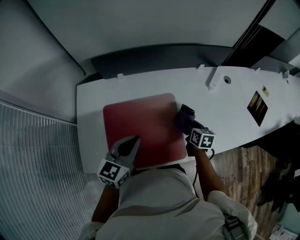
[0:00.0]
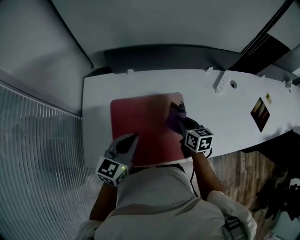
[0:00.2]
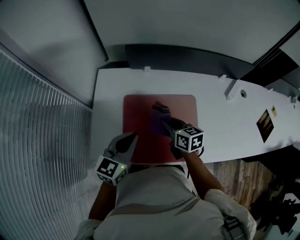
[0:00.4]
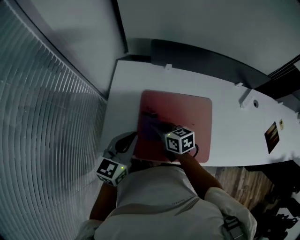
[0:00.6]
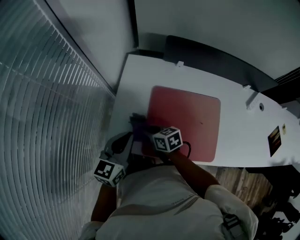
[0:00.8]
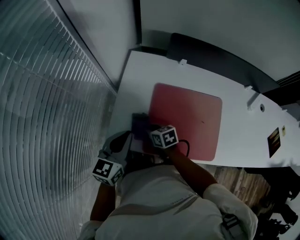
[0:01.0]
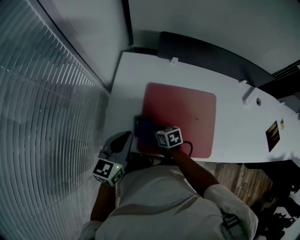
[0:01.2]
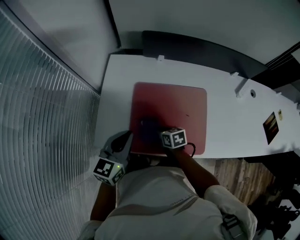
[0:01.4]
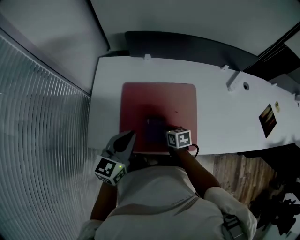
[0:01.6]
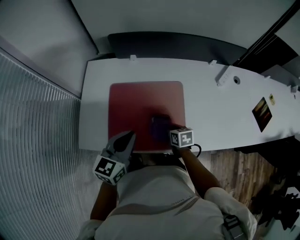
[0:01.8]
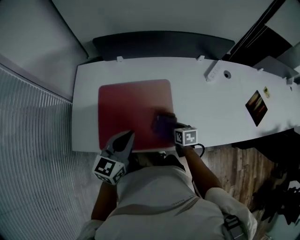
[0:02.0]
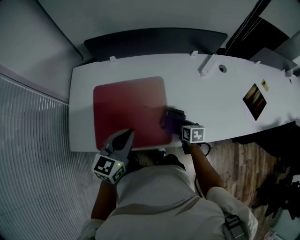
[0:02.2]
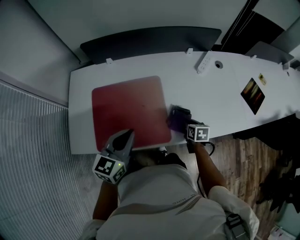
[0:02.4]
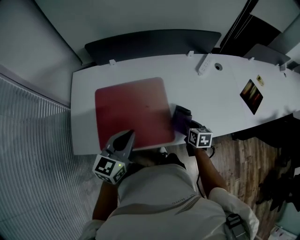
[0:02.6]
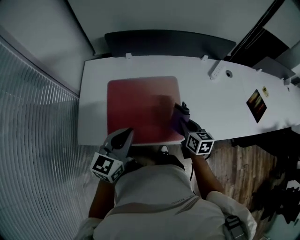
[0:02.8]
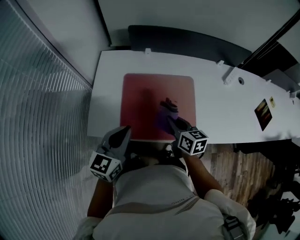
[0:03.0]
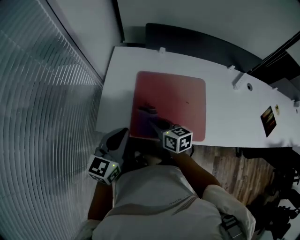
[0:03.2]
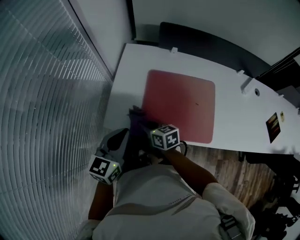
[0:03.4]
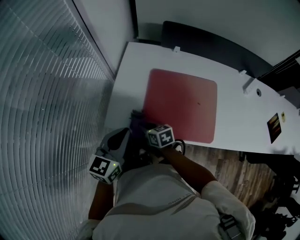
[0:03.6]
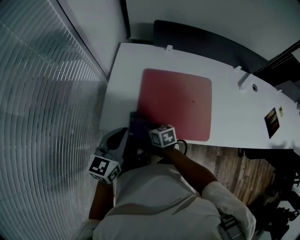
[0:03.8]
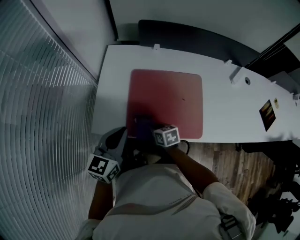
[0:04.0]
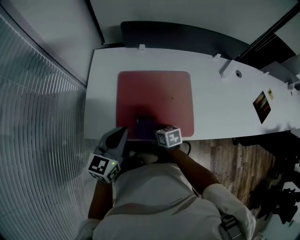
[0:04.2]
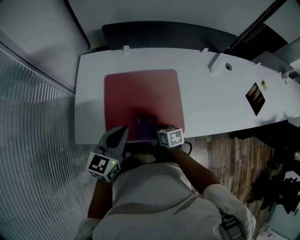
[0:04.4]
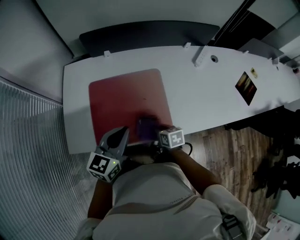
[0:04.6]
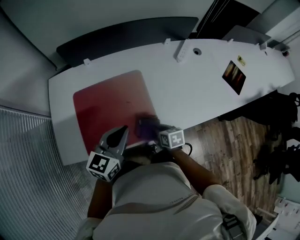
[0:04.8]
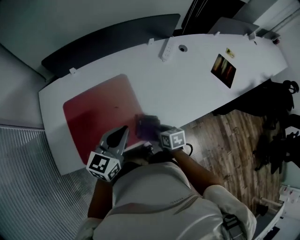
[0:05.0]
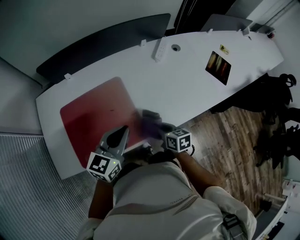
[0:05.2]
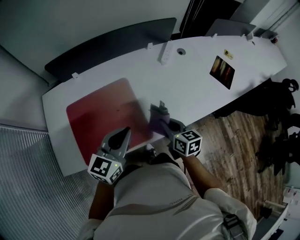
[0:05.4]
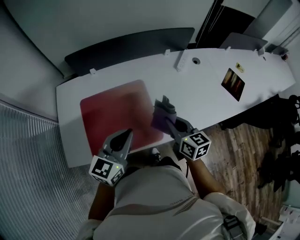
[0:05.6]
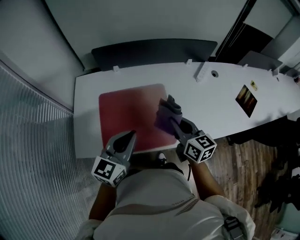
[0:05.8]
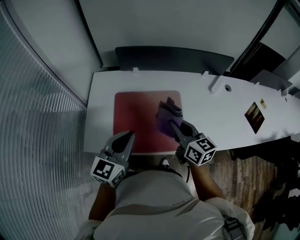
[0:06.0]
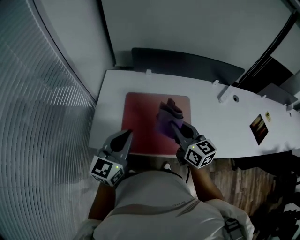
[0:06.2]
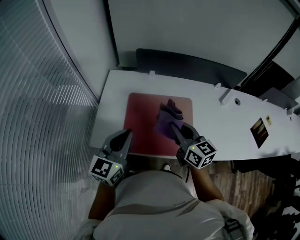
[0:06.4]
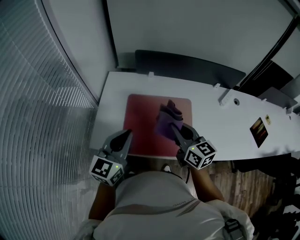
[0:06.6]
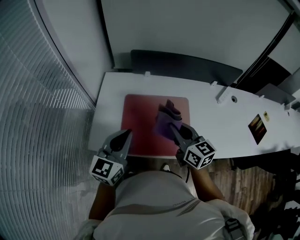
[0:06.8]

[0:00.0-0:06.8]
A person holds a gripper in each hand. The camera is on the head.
0:00.0 to 0:01.4: The right gripper moves about 35 cm, and turns by roughly 40 degrees.
0:01.4 to 0:02.8: The right gripper shifts by some 30 cm, and turns by some 30 degrees.
0:02.8 to 0:04.0: The right gripper changes place by roughly 30 cm, and swivels some 30 degrees. The left gripper changes place by approximately 15 cm.
0:04.0 to 0:05.4: The right gripper changes place by about 40 cm, and rotates roughly 40 degrees. Meanwhile the left gripper ends up roughly 35 cm from where it was, and changes its angle by roughly 30 degrees.
0:05.4 to 0:06.8: The right gripper shifts by about 30 cm, and turns by some 30 degrees. Meanwhile the left gripper ends up about 25 cm from where it was, and swivels some 30 degrees.

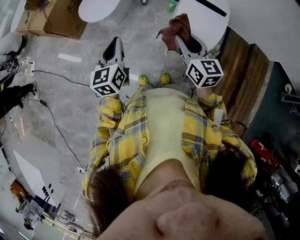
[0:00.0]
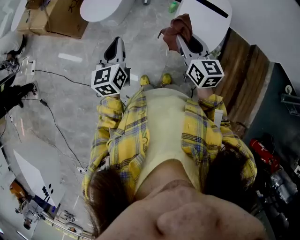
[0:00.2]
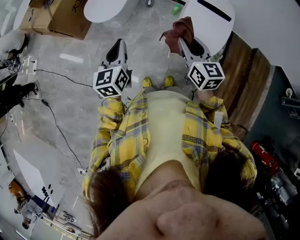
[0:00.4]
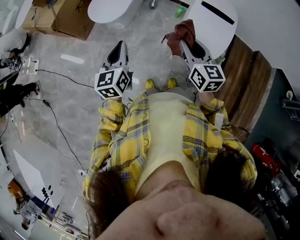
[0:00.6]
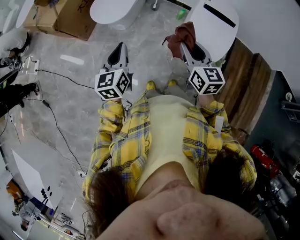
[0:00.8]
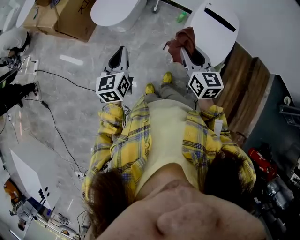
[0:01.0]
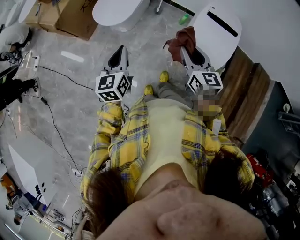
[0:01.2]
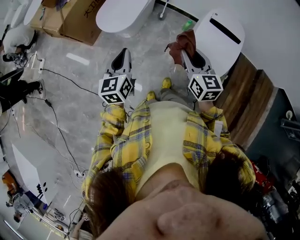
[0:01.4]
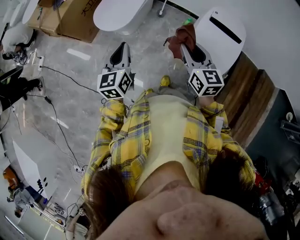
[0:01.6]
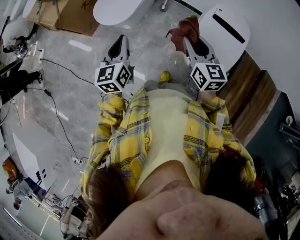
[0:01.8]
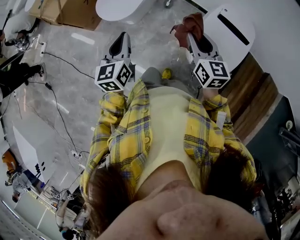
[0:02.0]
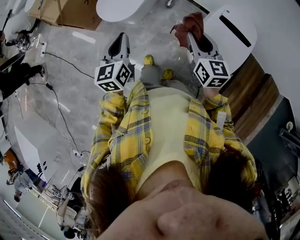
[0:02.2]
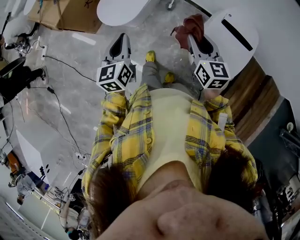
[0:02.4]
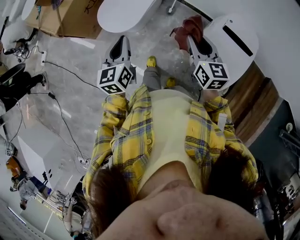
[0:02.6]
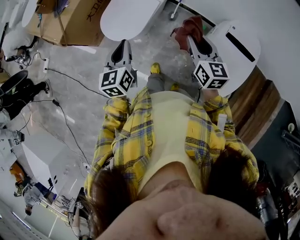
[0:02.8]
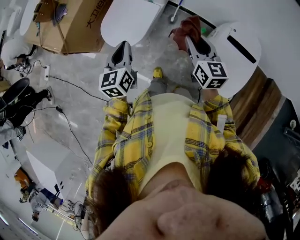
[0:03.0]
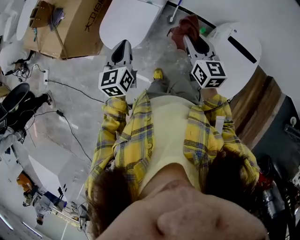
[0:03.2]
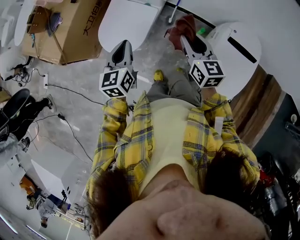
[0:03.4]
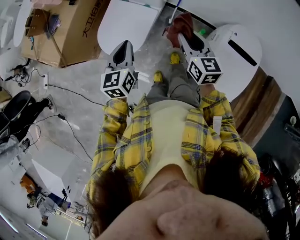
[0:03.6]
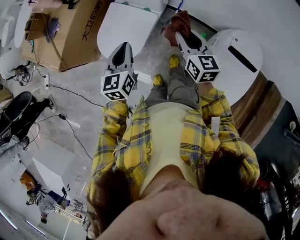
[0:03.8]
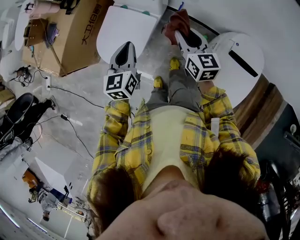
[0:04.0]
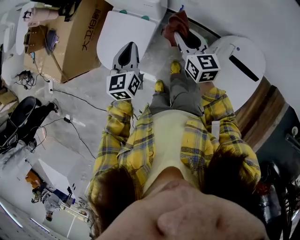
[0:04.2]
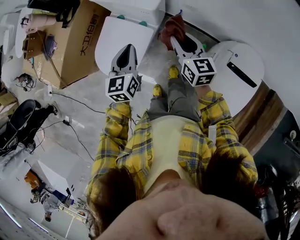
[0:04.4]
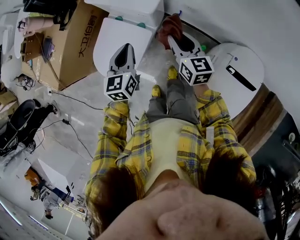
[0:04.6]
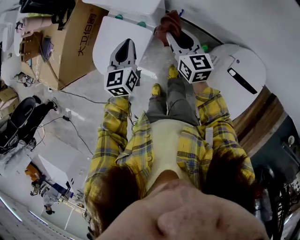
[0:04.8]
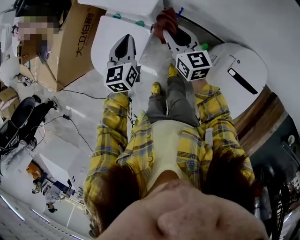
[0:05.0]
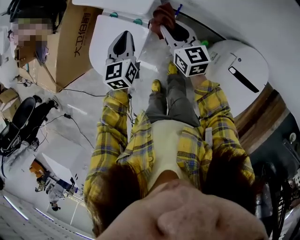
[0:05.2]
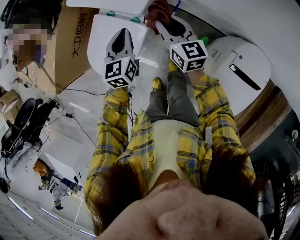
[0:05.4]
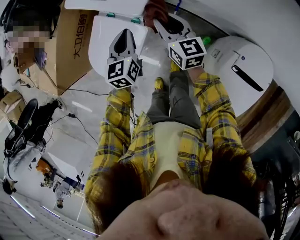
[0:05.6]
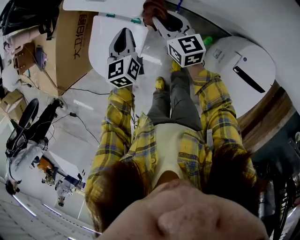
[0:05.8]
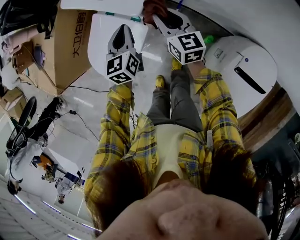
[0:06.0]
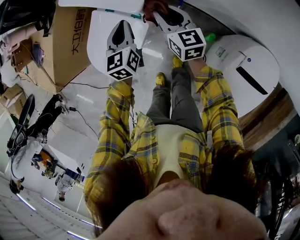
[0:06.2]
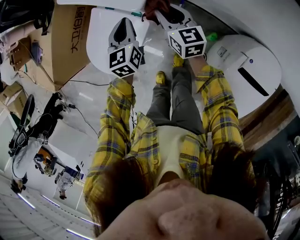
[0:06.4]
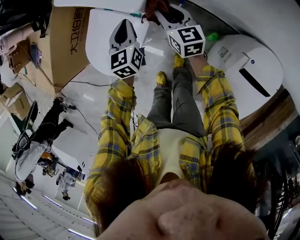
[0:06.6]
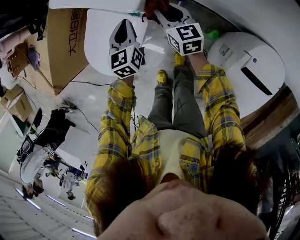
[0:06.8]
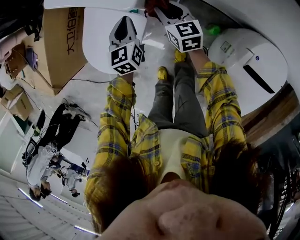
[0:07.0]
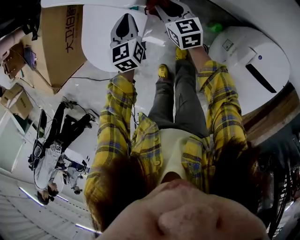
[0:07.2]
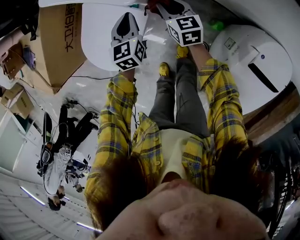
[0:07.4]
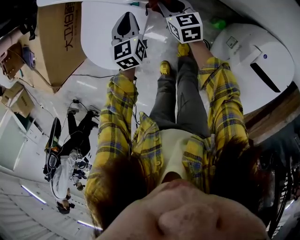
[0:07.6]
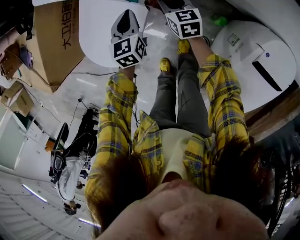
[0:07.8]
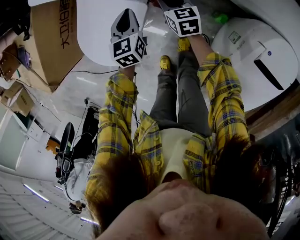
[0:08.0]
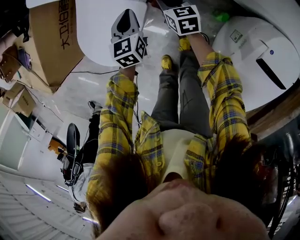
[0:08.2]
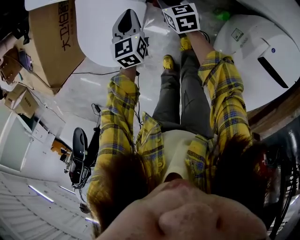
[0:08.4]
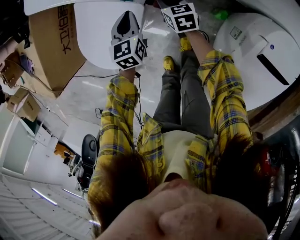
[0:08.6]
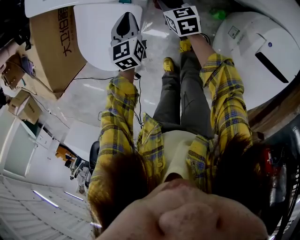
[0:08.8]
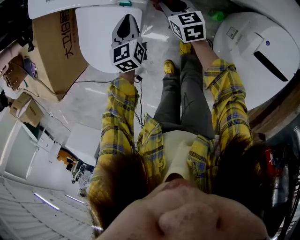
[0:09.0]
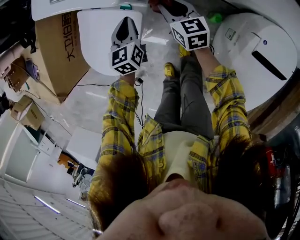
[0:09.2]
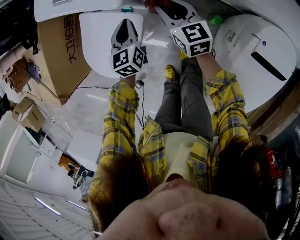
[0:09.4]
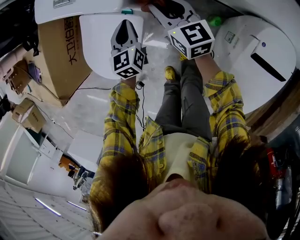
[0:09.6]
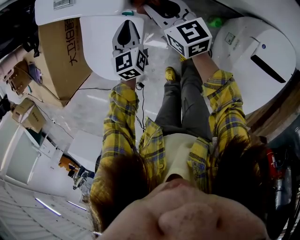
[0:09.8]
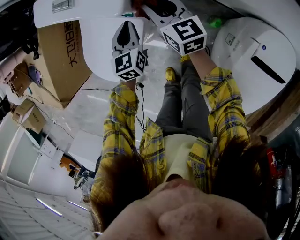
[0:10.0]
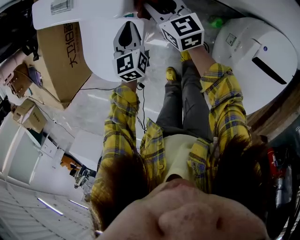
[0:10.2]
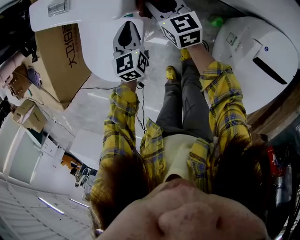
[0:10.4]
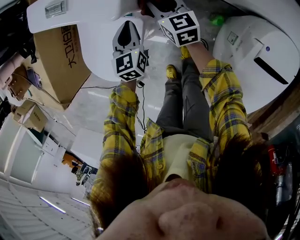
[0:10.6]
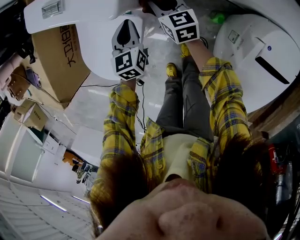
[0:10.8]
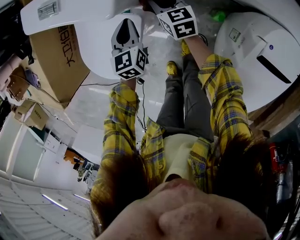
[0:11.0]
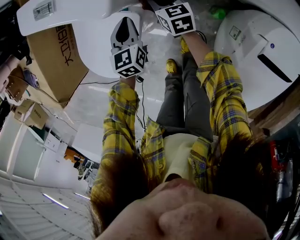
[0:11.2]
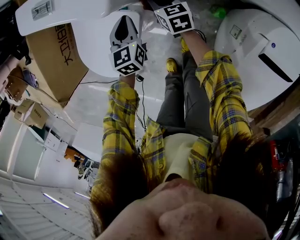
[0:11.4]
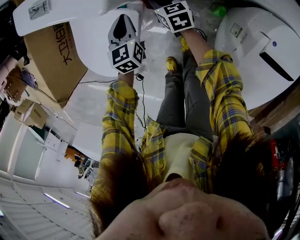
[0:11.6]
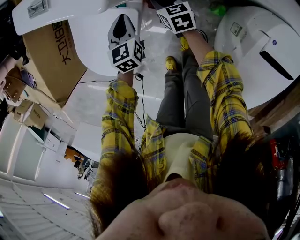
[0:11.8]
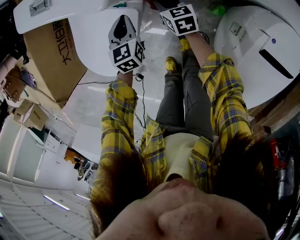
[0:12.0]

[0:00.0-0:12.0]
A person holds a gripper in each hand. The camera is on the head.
0:00.0 to 0:01.6: Both grippers move forward, some 10 cm.
0:01.6 to 0:03.0: Both grippers move forward, about 20 cm.
0:03.0 to 0:04.4: The right gripper moves forward, some 20 cm. The left gripper shifts roughly 25 cm forward and to the right.
0:04.4 to 0:06.0: The grippers both shift forward and downward by about 15 cm.
0:06.0 to 0:07.6: Both grippers travel together downward, approximately 15 cm.
0:07.6 to 0:09.0: There are only small adjustments of the grippers.
0:09.0 to 0:10.4: The right gripper moves upward and forward, roughly 10 cm.
0:10.4 to 0:12.0: The right gripper shifts approximately 15 cm downward, while the left gripper is displaced downward by about 5 cm.

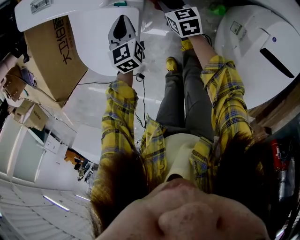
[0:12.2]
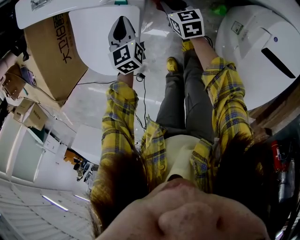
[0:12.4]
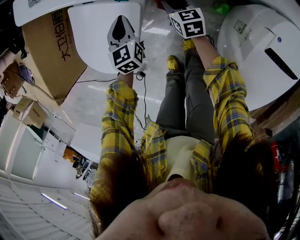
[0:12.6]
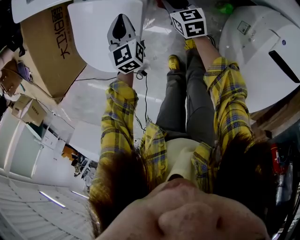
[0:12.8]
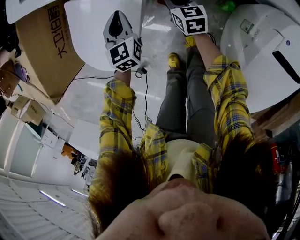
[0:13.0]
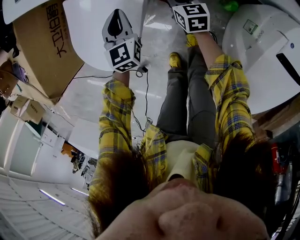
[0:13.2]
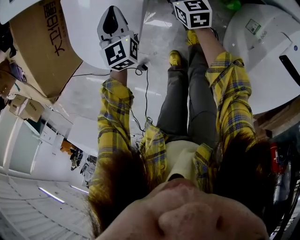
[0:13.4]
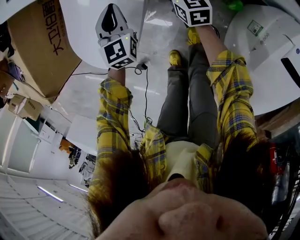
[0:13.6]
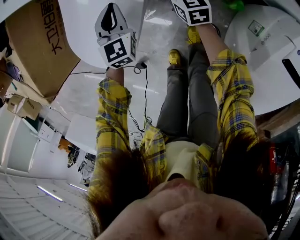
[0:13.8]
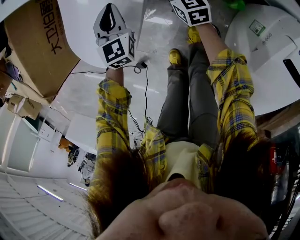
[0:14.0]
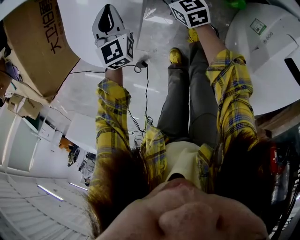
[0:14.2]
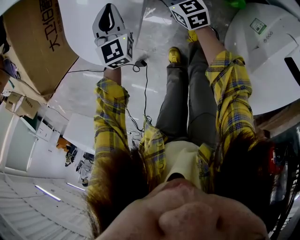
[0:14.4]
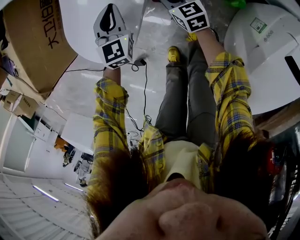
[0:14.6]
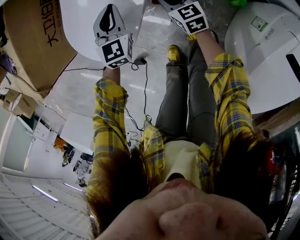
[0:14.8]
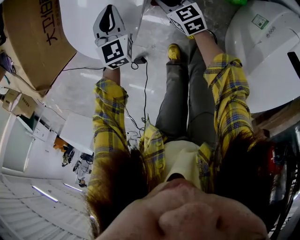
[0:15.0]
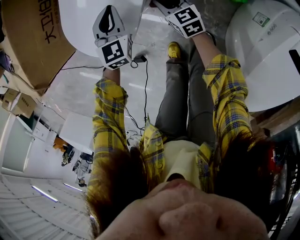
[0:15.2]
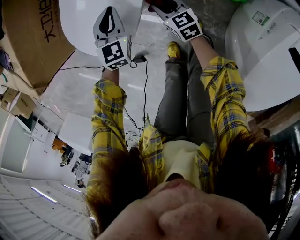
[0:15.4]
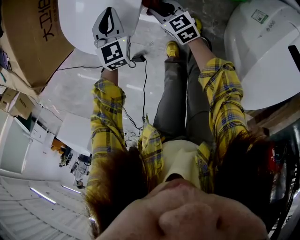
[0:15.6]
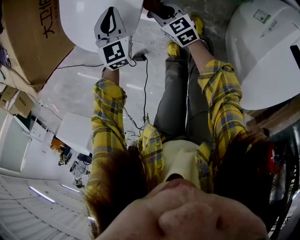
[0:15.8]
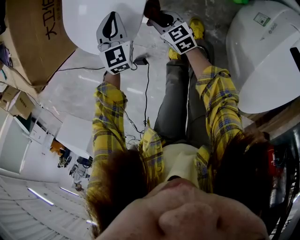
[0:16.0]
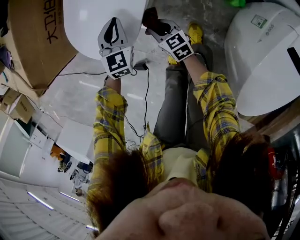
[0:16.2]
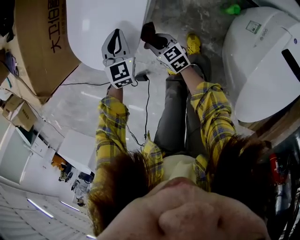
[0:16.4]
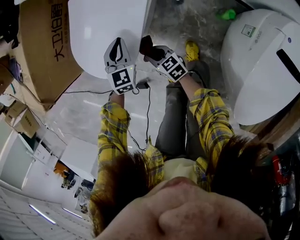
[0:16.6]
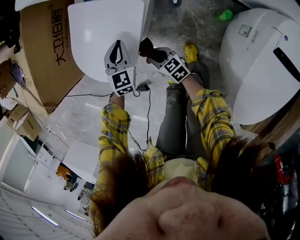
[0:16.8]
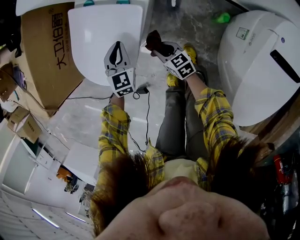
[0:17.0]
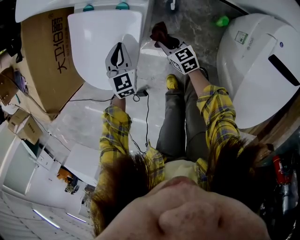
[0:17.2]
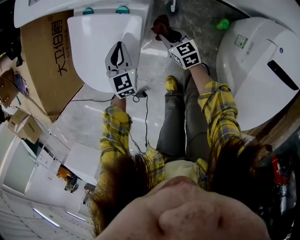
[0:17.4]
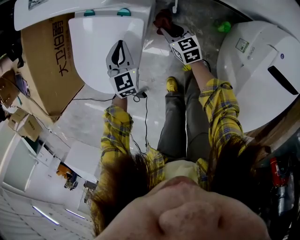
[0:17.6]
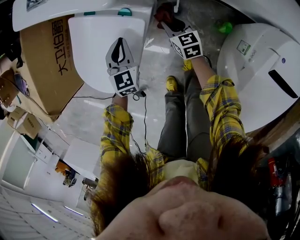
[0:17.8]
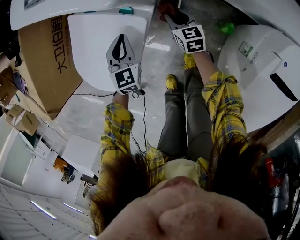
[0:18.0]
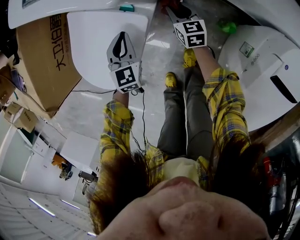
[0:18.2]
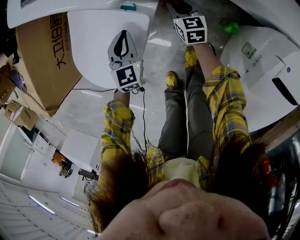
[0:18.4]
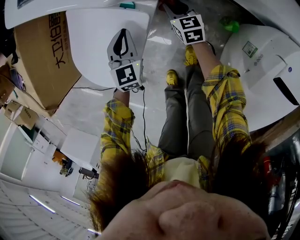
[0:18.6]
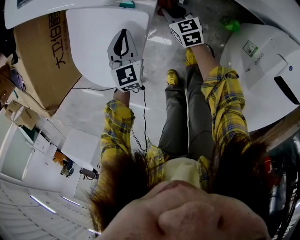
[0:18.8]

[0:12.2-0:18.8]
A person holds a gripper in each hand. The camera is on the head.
0:12.2 to 0:13.8: The right gripper heads downward, covering approximately 5 cm. Meanwhile the left gripper shifts about 5 cm to the left.
0:13.8 to 0:15.4: The left gripper travels to the left and backward by approximately 10 cm. The right gripper is displaced to the left and backward by about 15 cm.
0:15.4 to 0:17.2: The right gripper moves approximately 10 cm to the left and comes back.
0:17.2 to 0:18.8: The left gripper shifts by about 5 cm. Meanwhile the right gripper moves forward and to the right, roughly 15 cm.
